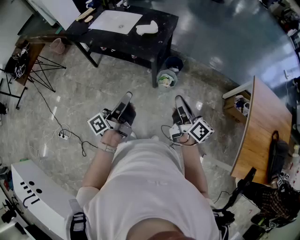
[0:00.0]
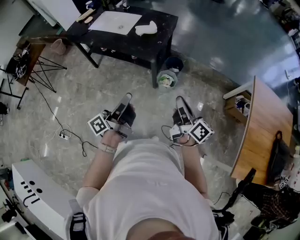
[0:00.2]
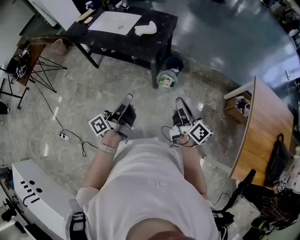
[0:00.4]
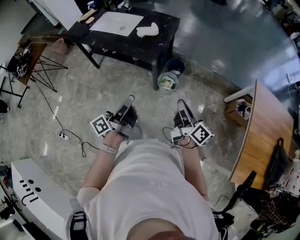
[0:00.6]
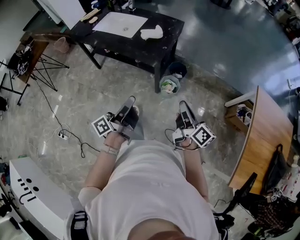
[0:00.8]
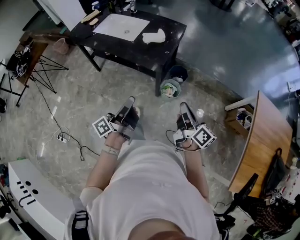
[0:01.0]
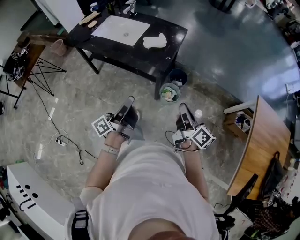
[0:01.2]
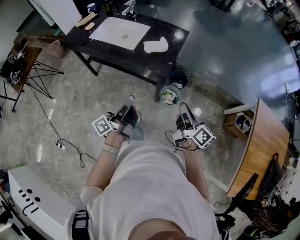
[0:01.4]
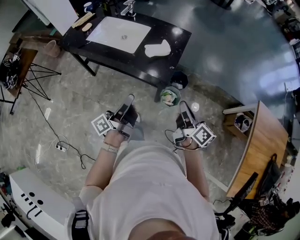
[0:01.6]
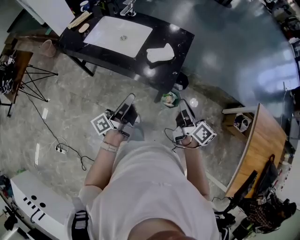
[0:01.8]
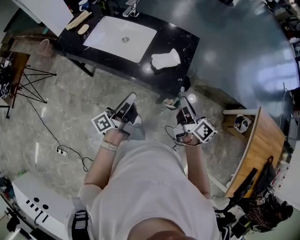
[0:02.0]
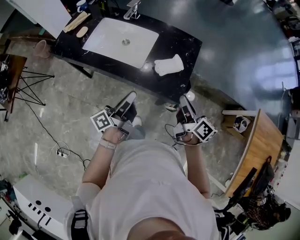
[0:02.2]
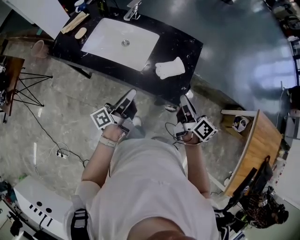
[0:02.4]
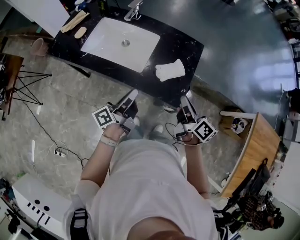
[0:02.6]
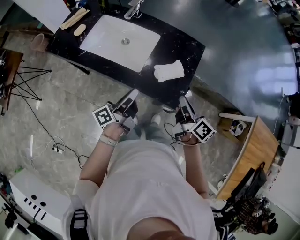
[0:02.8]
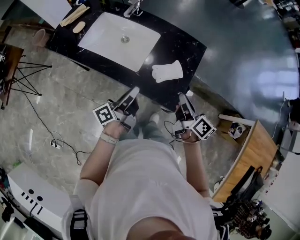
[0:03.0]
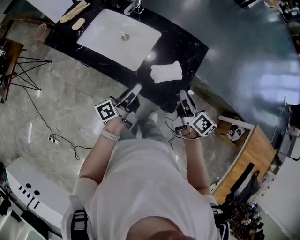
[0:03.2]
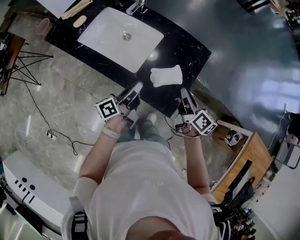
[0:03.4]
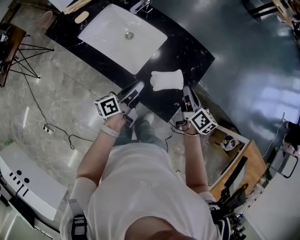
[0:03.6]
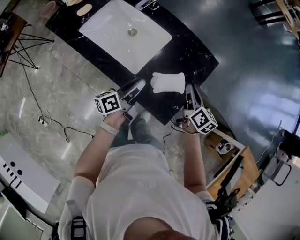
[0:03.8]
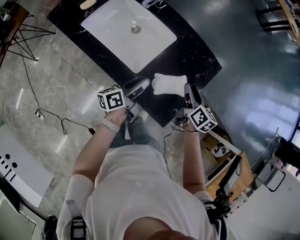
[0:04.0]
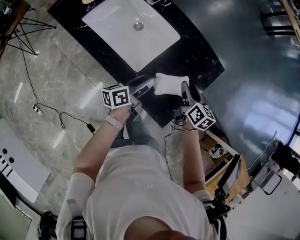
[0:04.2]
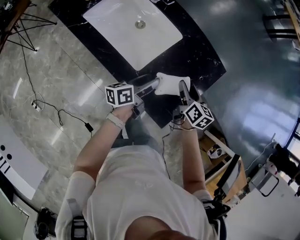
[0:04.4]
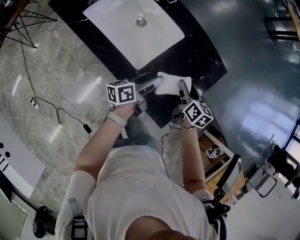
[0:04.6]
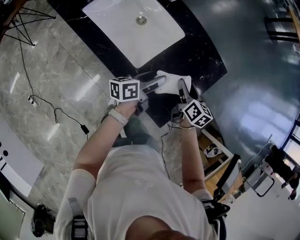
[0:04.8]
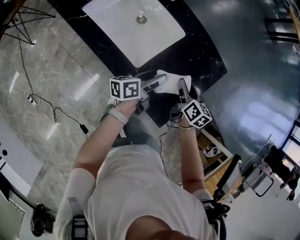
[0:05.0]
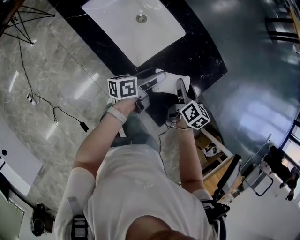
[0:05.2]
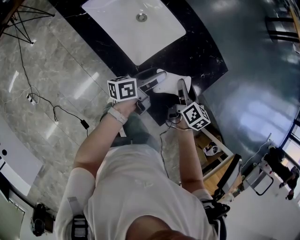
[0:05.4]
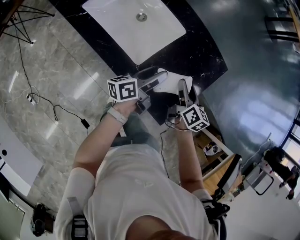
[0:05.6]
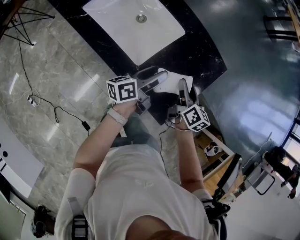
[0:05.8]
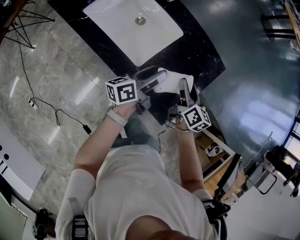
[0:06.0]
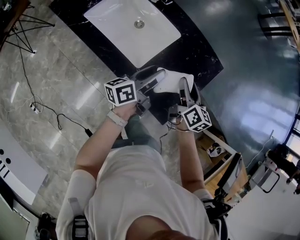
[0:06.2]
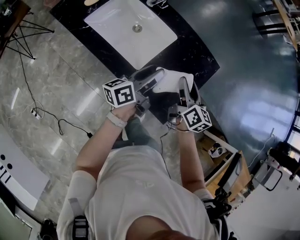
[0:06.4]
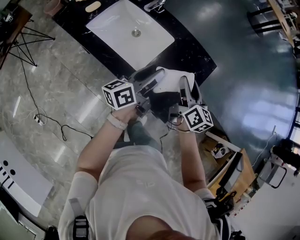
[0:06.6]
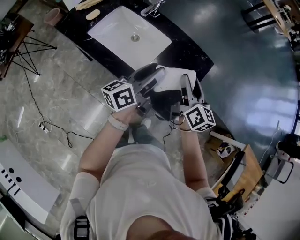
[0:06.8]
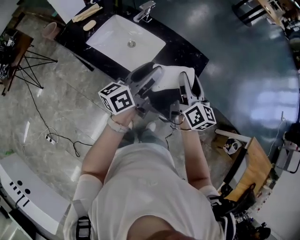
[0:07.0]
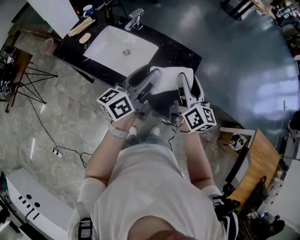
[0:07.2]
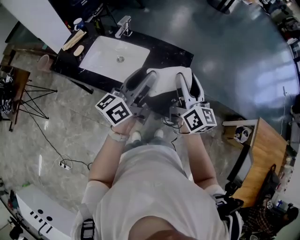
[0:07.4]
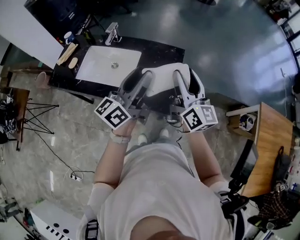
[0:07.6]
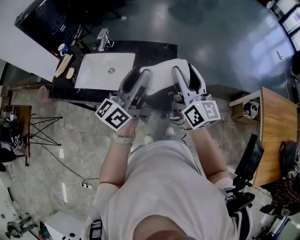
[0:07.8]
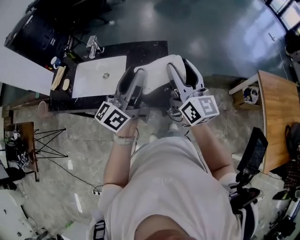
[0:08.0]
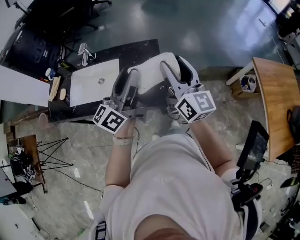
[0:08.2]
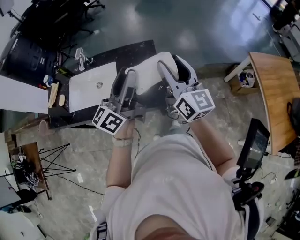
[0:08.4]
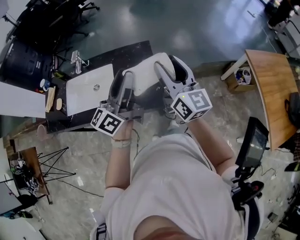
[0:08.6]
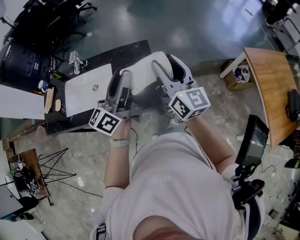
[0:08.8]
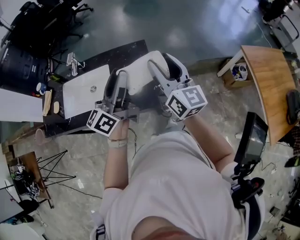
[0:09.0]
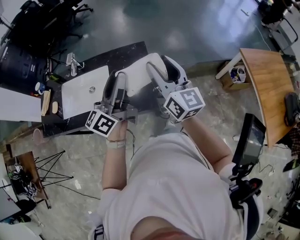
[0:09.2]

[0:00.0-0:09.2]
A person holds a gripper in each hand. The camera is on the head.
0.0 to 1.6 s: Both grippers move forward, some 25 cm.
1.6 to 3.0 s: Both grippers move forward, roughly 25 cm.
3.0 to 4.6 s: The right gripper goes some 25 cm forward and downward, rotates about 30 degrees, and opens up. The left gripper moves downward and forward, some 20 cm, swivels about 20 degrees, and opens.
4.6 to 6.2 s: Both grippers travel together upward, roughly 10 cm.
6.2 to 7.6 s: Both grippers move upward and backward, some 30 cm. The left gripper swivels roughly 30 degrees. The right gripper tips its fingers upward by roughly 30 degrees.
7.6 to 9.2 s: The grippers make only small movements.

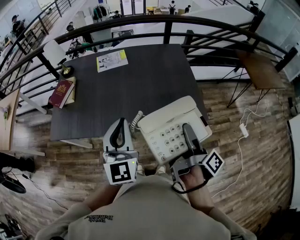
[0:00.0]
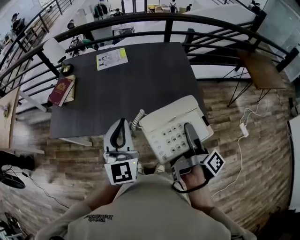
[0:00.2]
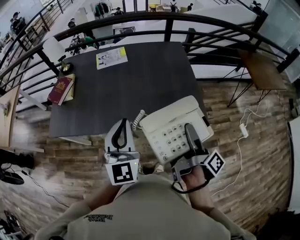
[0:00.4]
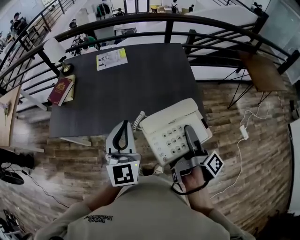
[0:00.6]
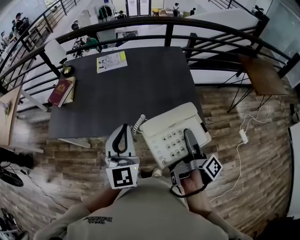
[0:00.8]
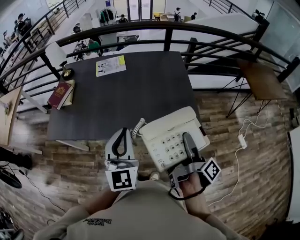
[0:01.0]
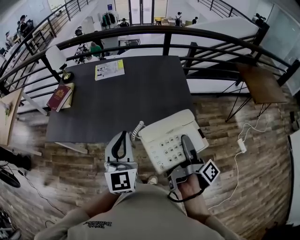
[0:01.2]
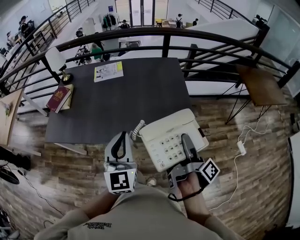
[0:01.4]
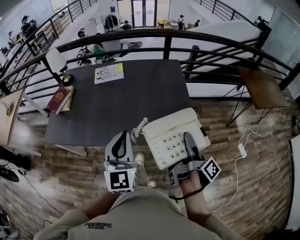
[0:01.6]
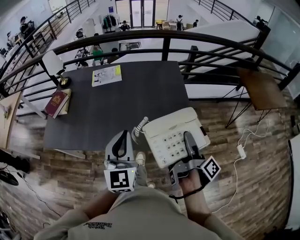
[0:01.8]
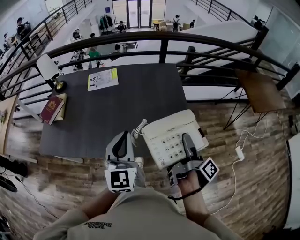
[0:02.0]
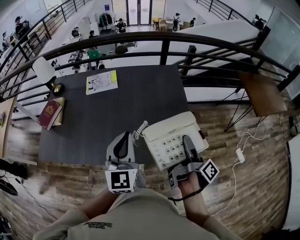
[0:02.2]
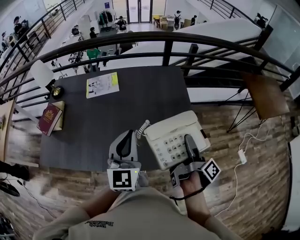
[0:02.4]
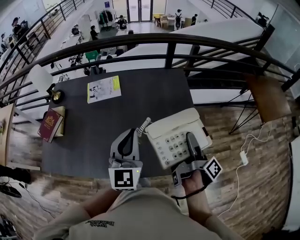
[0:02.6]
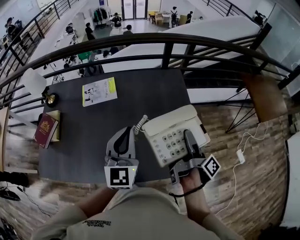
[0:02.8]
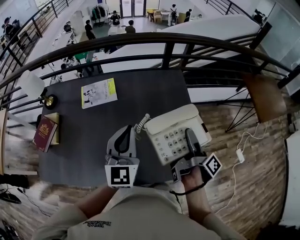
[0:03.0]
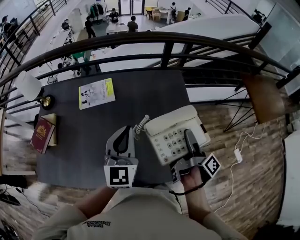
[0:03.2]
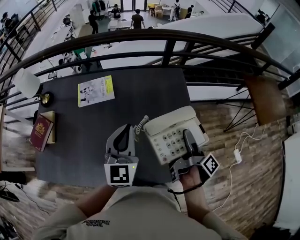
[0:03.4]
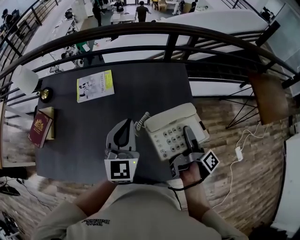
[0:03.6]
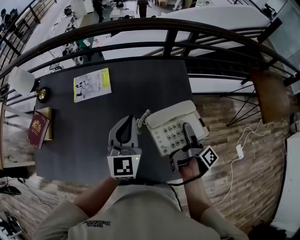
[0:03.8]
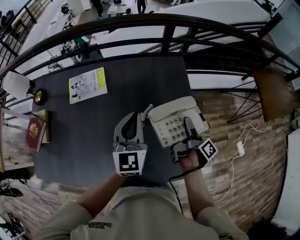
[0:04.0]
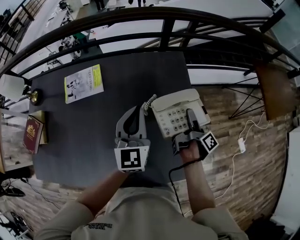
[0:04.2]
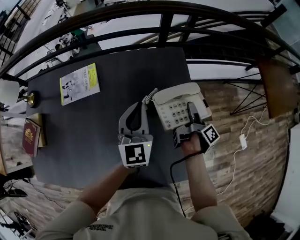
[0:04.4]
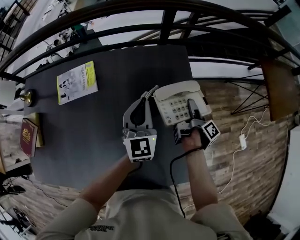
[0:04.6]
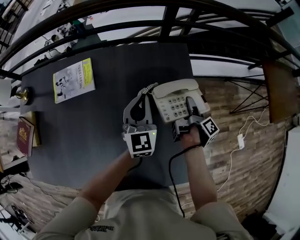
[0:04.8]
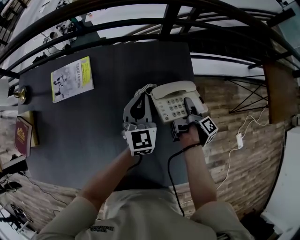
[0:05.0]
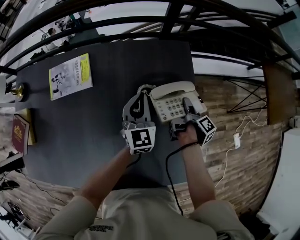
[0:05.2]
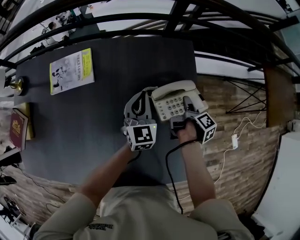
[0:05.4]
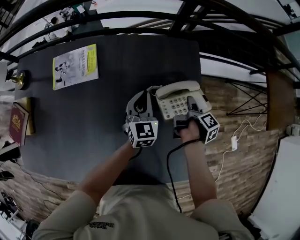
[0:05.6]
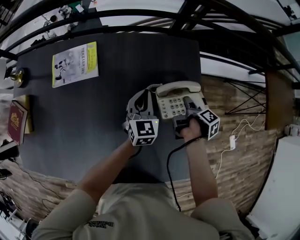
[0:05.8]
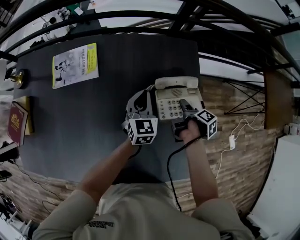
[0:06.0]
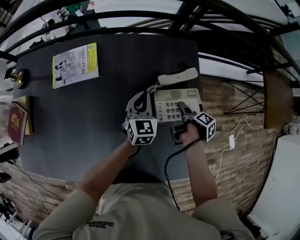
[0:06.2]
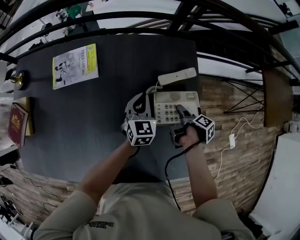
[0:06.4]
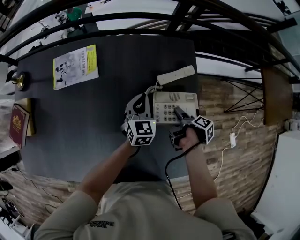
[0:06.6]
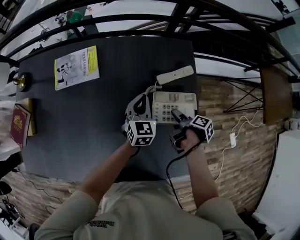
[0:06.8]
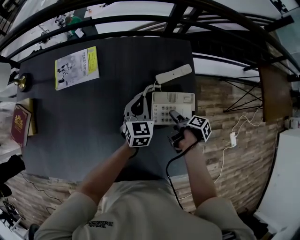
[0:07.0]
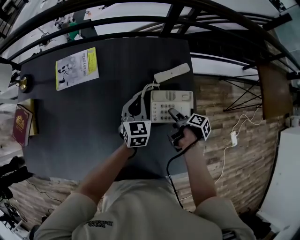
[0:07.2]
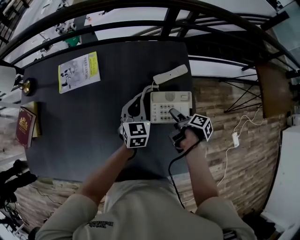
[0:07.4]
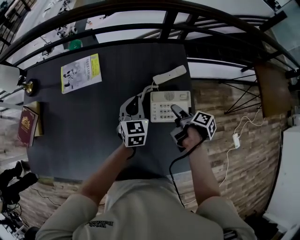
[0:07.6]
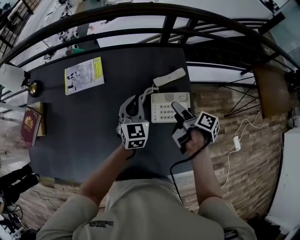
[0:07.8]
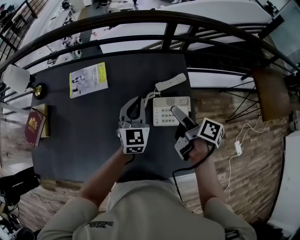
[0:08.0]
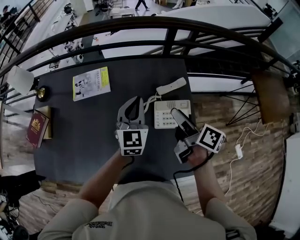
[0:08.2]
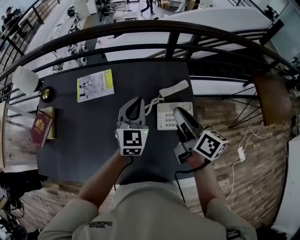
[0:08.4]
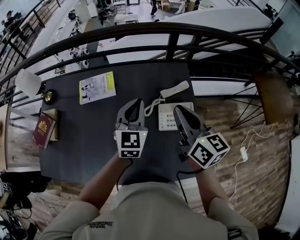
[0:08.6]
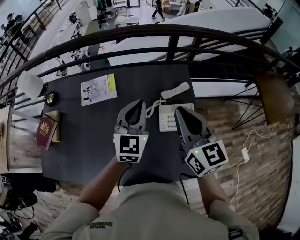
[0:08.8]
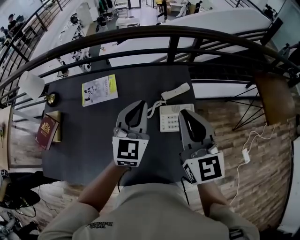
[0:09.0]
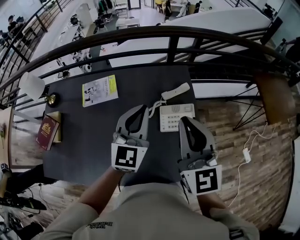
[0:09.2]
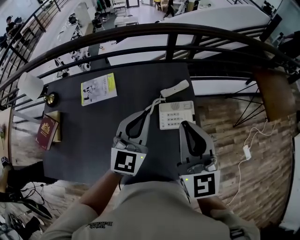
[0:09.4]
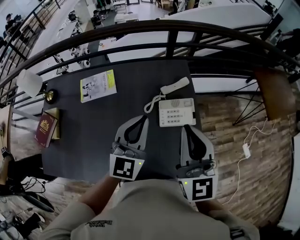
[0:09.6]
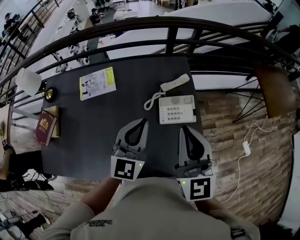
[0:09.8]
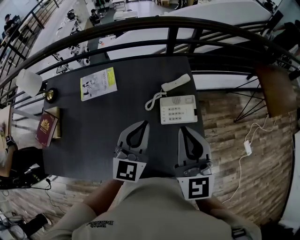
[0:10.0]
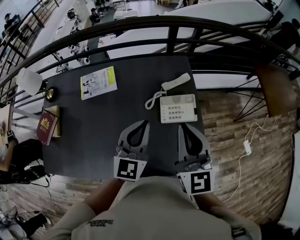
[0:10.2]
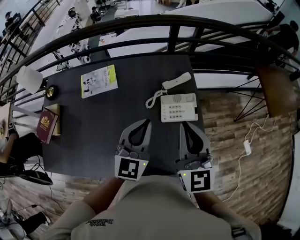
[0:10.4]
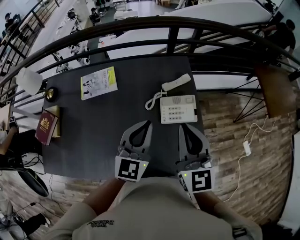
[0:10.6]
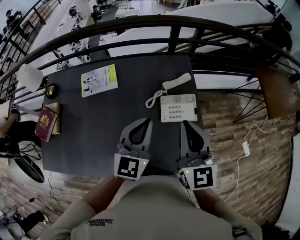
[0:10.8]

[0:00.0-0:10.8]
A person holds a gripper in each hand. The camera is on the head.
0.0 to 1.6 s: The left gripper moves approximately 10 cm.
1.6 to 3.0 s: The left gripper ends up approximately 30 cm from where it was.
3.0 to 4.6 s: The left gripper ends up some 30 cm from where it was.
4.6 to 6.2 s: The left gripper travels downward by approximately 15 cm.
6.2 to 7.8 s: The left gripper heads upward, covering approximately 10 cm.
7.8 to 9.2 s: The left gripper goes some 20 cm upward, and changes its angle by roughly 20 degrees.
9.2 to 10.8 s: The left gripper moves about 5 cm.

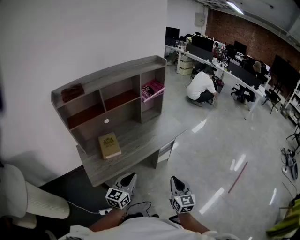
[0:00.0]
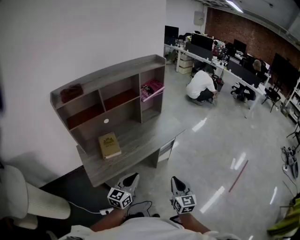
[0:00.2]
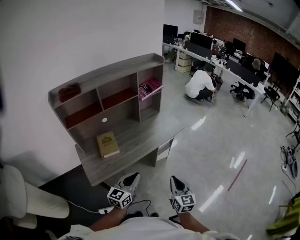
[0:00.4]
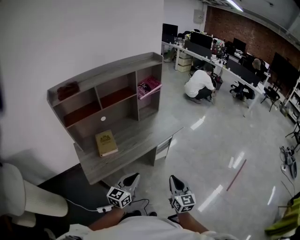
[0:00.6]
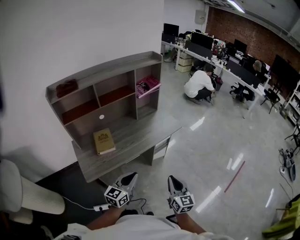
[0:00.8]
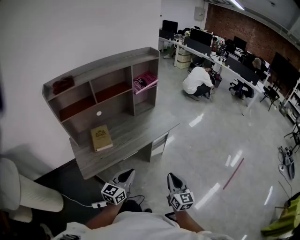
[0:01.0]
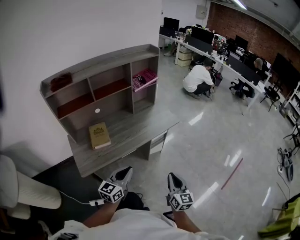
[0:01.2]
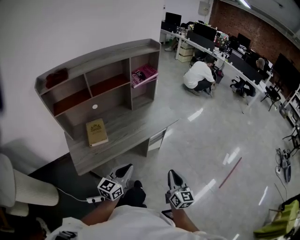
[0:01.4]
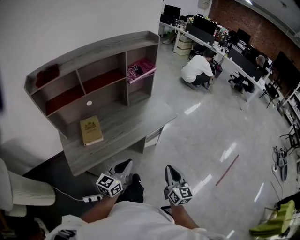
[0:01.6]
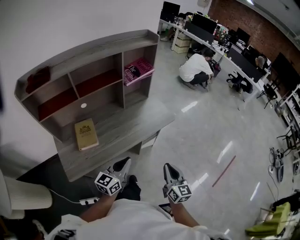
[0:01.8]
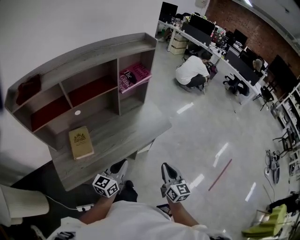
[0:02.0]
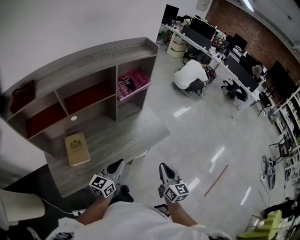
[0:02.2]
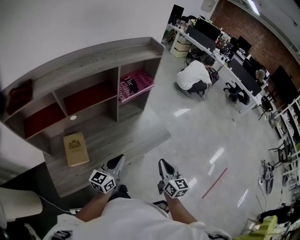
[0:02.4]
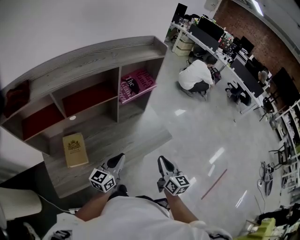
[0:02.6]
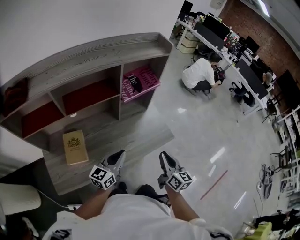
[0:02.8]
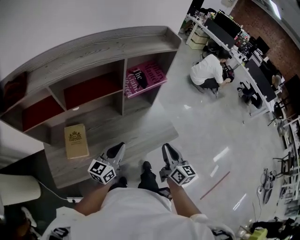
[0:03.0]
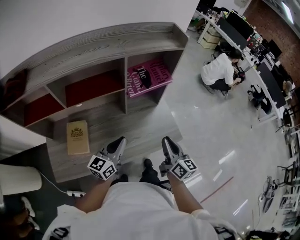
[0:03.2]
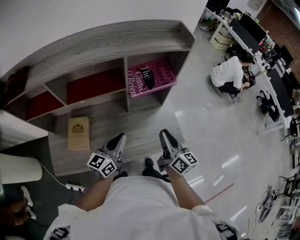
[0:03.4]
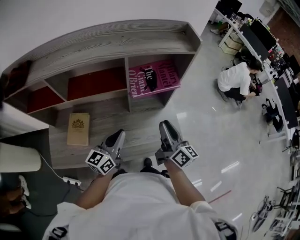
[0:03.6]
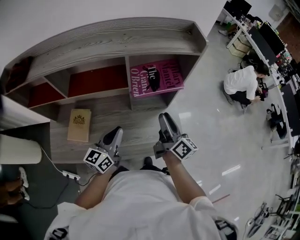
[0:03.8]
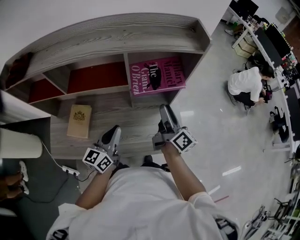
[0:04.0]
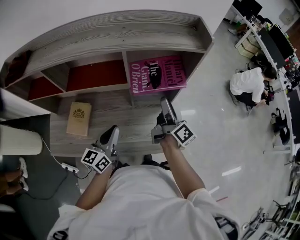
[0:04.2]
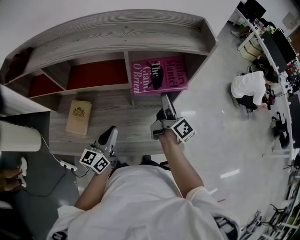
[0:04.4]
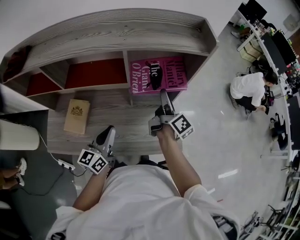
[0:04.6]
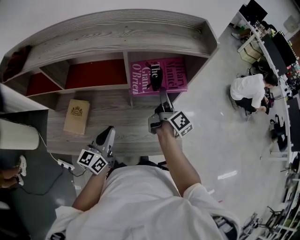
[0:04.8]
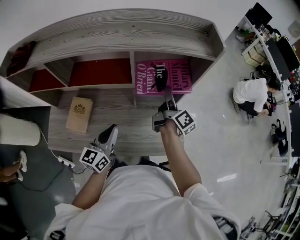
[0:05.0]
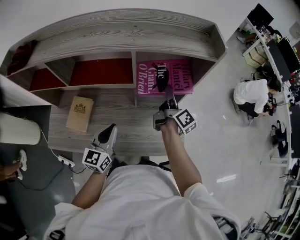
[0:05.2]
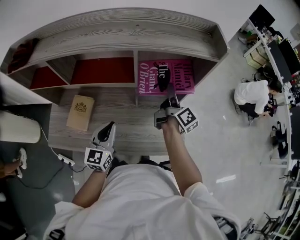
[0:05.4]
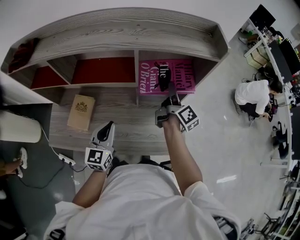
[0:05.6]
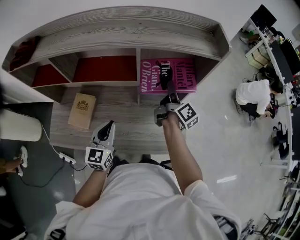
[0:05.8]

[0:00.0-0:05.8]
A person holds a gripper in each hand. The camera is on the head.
0.0 to 1.4 s: The grippers both shift to the right by roughly 5 cm.
1.4 to 2.8 s: The two grippers go about 35 cm forward.
2.8 to 4.4 s: The left gripper shifts by approximately 10 cm, and changes its angle by approximately 30 degrees; the right gripper ends up roughly 35 cm from where it was, swivels approximately 50 degrees, and opens.
4.4 to 5.8 s: The right gripper moves forward, about 5 cm. The left gripper swivels some 20 degrees.
